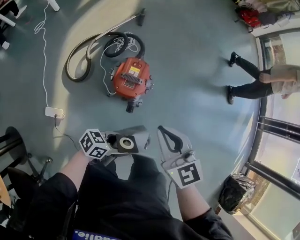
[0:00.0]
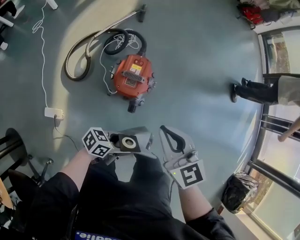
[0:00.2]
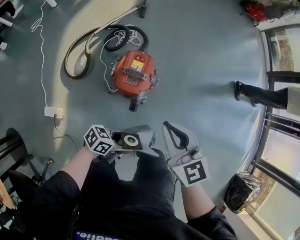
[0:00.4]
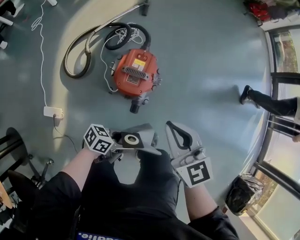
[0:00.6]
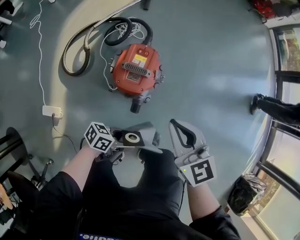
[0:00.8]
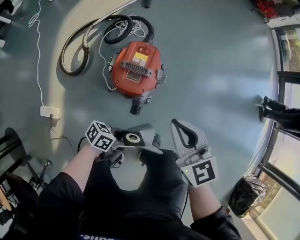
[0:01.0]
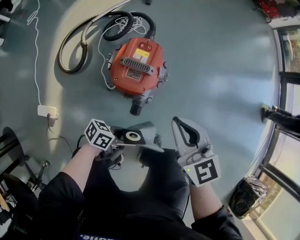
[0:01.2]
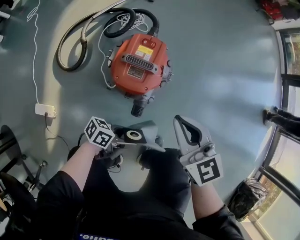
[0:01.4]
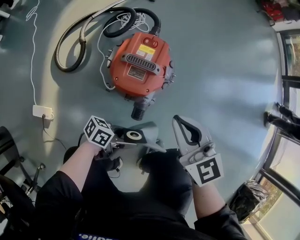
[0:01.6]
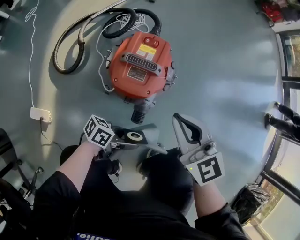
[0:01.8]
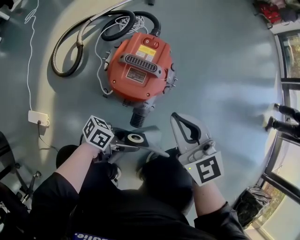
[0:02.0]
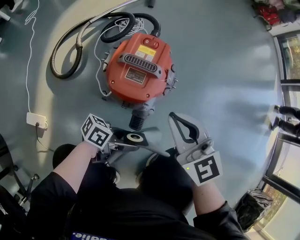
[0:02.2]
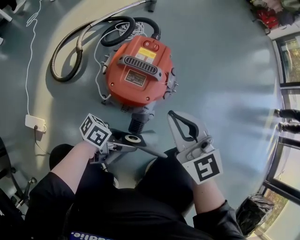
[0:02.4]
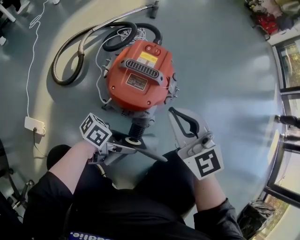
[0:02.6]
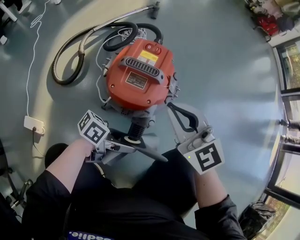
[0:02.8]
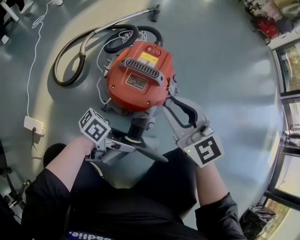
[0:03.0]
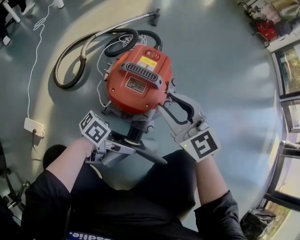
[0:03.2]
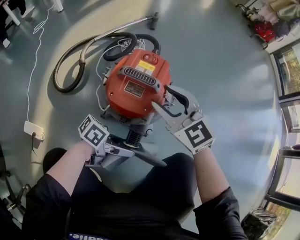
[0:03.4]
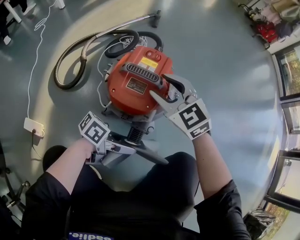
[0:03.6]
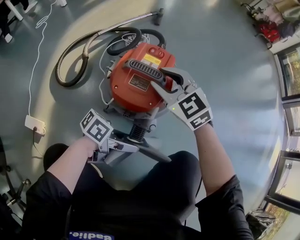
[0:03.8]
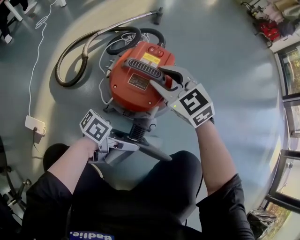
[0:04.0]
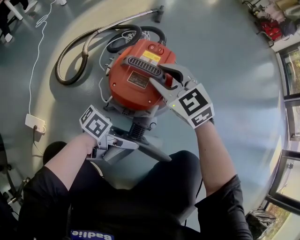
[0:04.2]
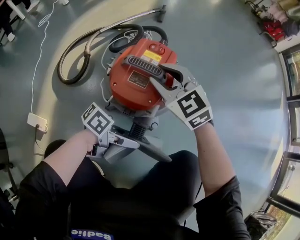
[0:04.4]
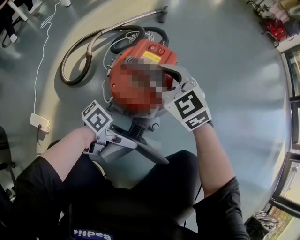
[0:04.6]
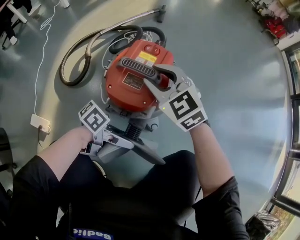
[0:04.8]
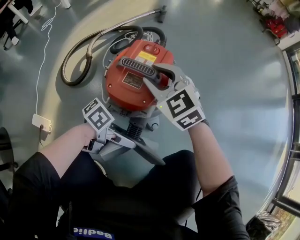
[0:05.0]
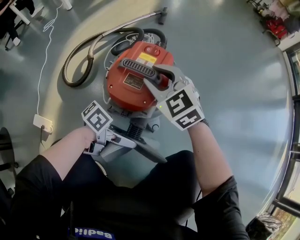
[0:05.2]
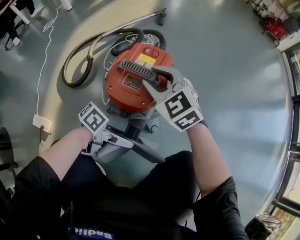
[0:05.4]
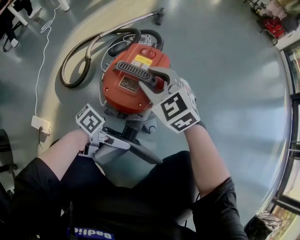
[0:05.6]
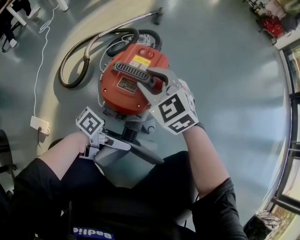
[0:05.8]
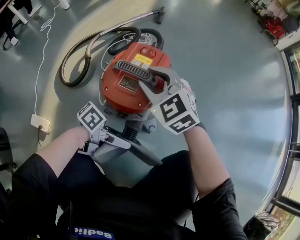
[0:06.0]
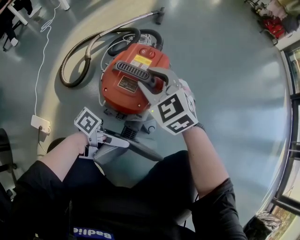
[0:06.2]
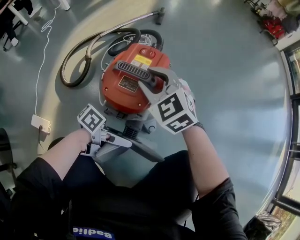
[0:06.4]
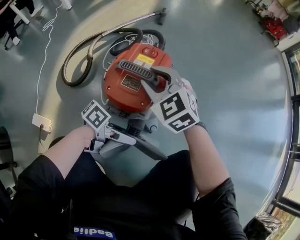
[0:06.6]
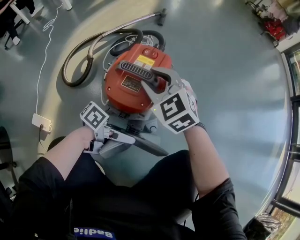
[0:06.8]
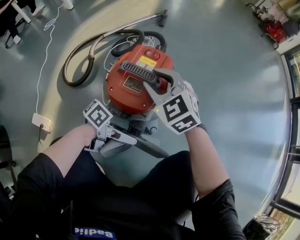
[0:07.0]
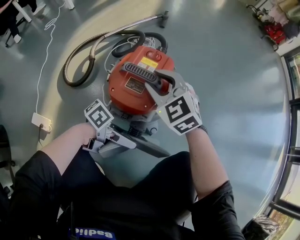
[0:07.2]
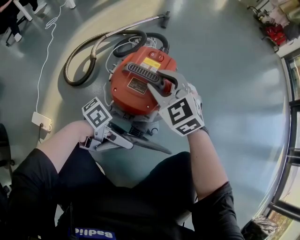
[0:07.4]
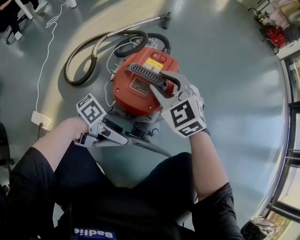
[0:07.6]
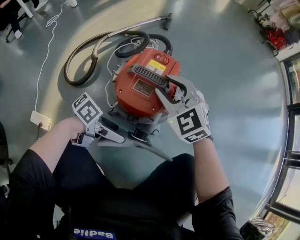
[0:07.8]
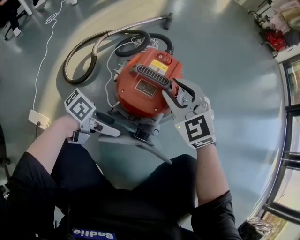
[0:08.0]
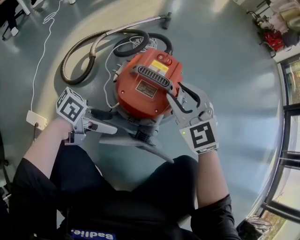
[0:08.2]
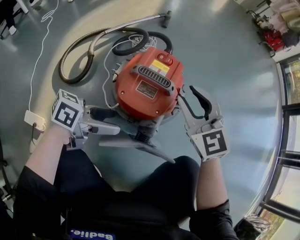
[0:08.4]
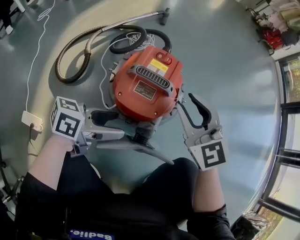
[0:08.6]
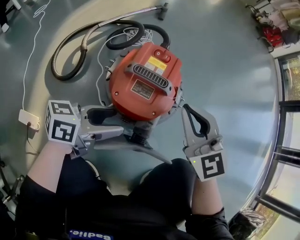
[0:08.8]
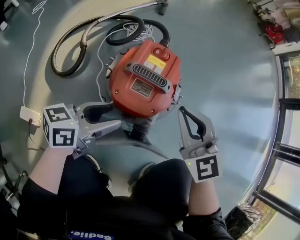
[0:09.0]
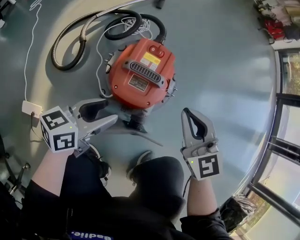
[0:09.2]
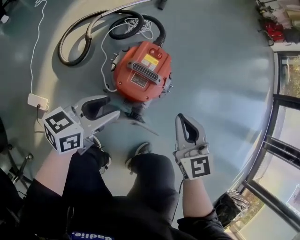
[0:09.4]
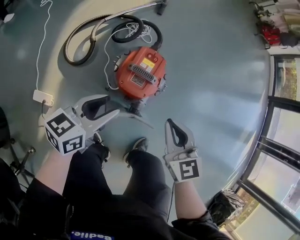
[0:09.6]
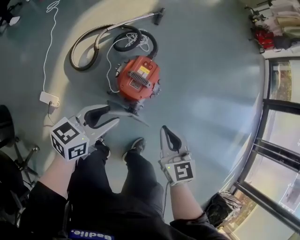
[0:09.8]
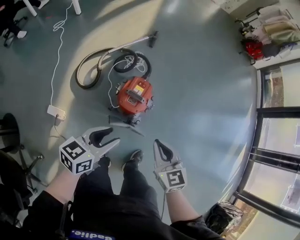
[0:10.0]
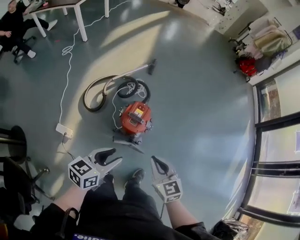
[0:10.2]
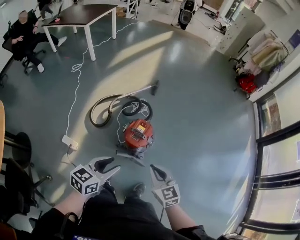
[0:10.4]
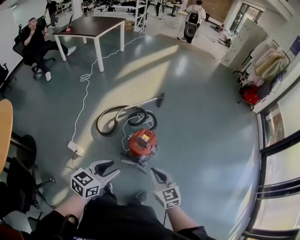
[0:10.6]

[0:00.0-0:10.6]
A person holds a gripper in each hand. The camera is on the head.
0:00.0 to 0:01.6: The two grippers go about 30 cm downward.
0:01.6 to 0:03.0: The left gripper goes approximately 5 cm downward, while the right gripper travels downward by about 10 cm, and turns by about 20 degrees.
0:03.0 to 0:04.6: The right gripper ends up some 10 cm from where it was.
0:04.6 to 0:07.6: The grippers stay close to where they were, moving slightly.
0:07.6 to 0:09.0: The left gripper moves some 15 cm, rotates roughly 40 degrees, and closes, while the right gripper changes place by roughly 10 cm, swivels about 20 degrees, and closes.
0:09.0 to 0:10.6: The right gripper shifts about 40 cm upward and backward, while the left gripper travels upward by roughly 50 cm, and turns by approximately 30 degrees.

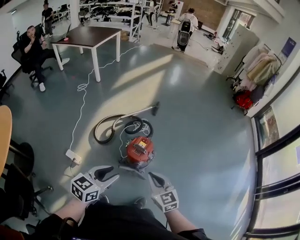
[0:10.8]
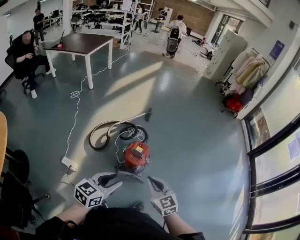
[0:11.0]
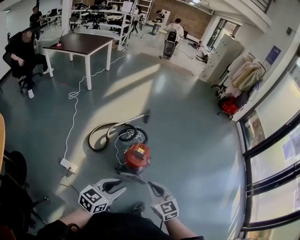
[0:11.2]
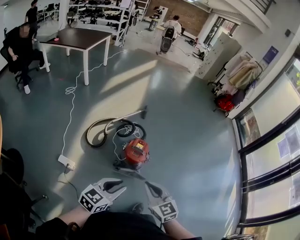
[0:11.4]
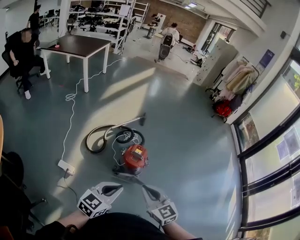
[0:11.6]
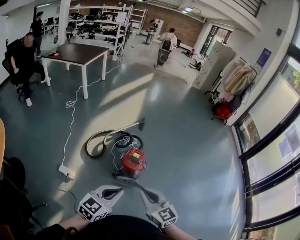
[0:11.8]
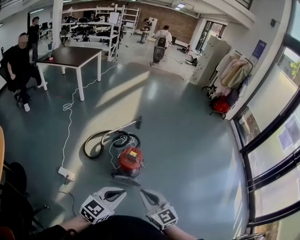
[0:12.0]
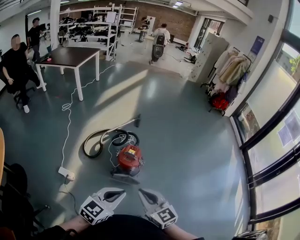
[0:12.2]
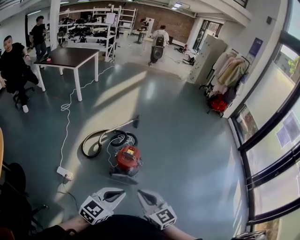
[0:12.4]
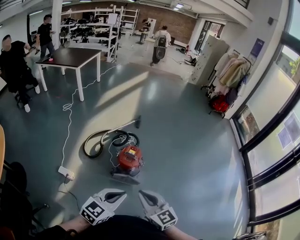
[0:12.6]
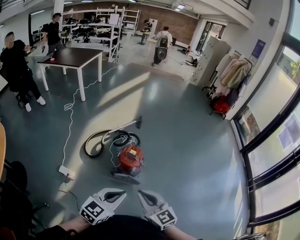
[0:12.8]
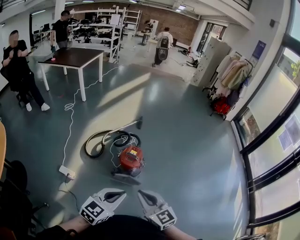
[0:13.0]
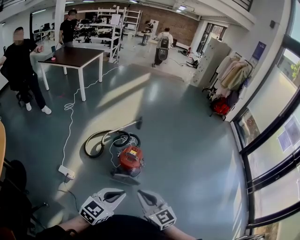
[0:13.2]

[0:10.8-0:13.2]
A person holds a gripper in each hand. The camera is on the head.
0:10.8 to 0:12.0: The left gripper shifts roughly 10 cm backward, and swivels roughly 20 degrees. The right gripper travels backward and upward by roughly 15 cm.
0:12.0 to 0:13.2: There are only small adjustments of the grippers.

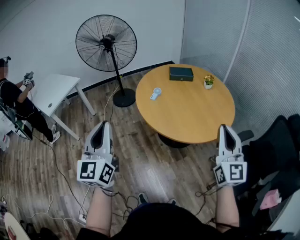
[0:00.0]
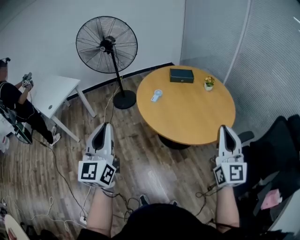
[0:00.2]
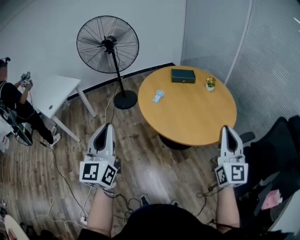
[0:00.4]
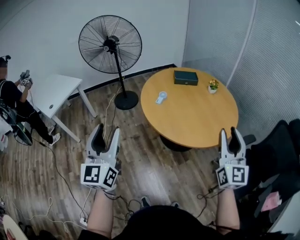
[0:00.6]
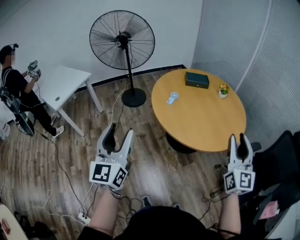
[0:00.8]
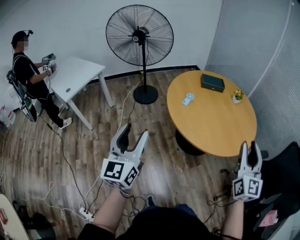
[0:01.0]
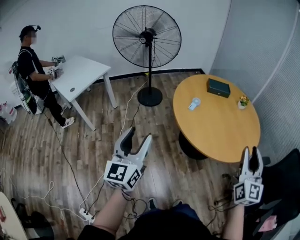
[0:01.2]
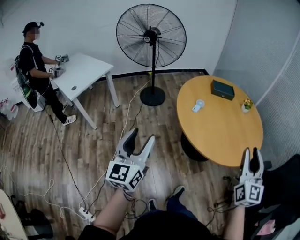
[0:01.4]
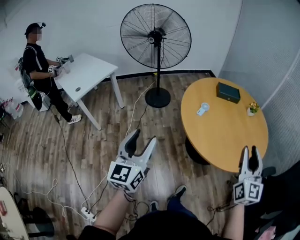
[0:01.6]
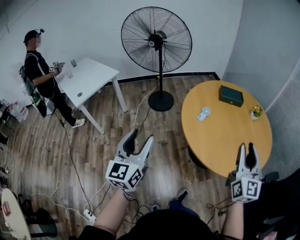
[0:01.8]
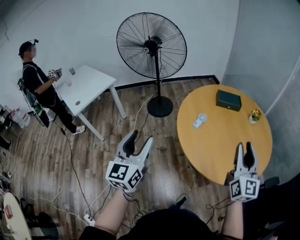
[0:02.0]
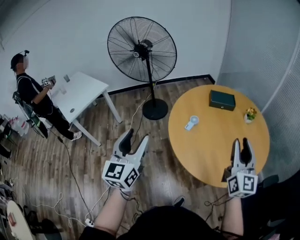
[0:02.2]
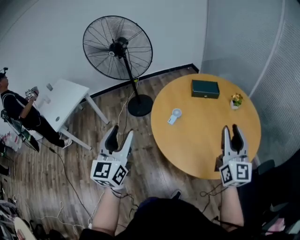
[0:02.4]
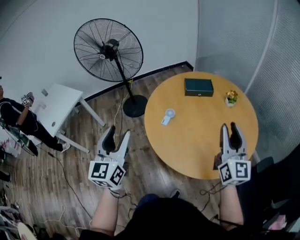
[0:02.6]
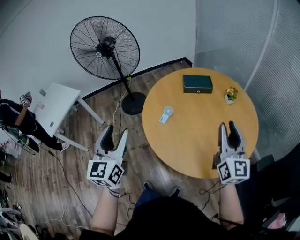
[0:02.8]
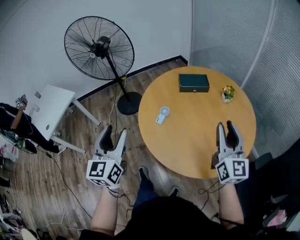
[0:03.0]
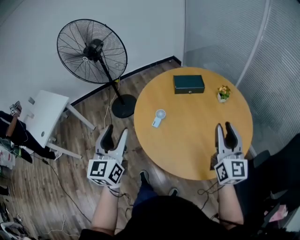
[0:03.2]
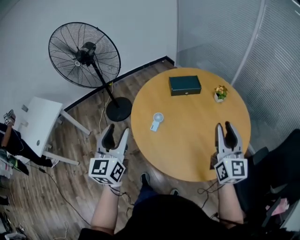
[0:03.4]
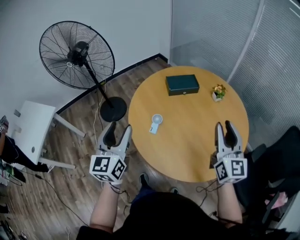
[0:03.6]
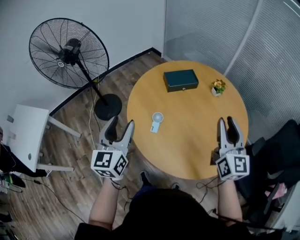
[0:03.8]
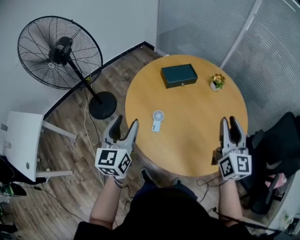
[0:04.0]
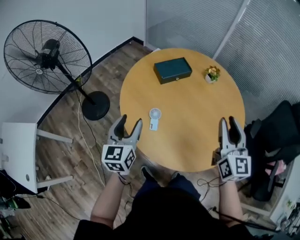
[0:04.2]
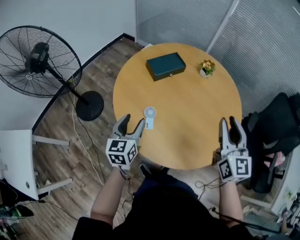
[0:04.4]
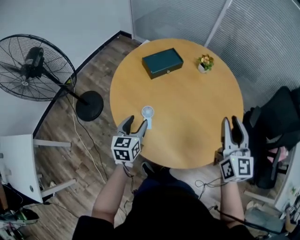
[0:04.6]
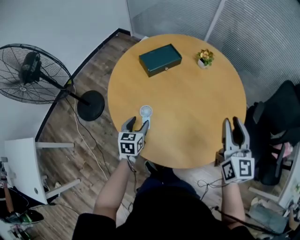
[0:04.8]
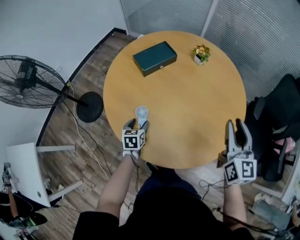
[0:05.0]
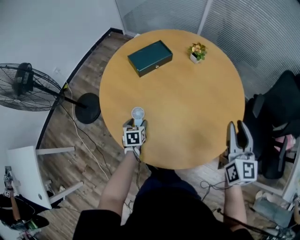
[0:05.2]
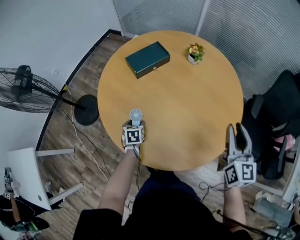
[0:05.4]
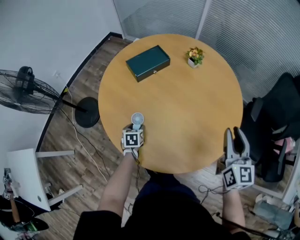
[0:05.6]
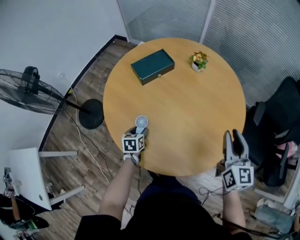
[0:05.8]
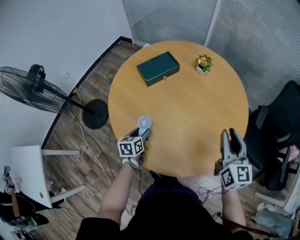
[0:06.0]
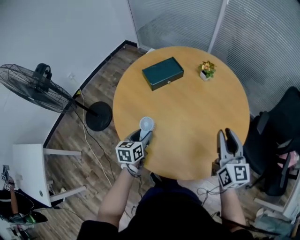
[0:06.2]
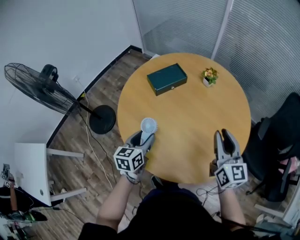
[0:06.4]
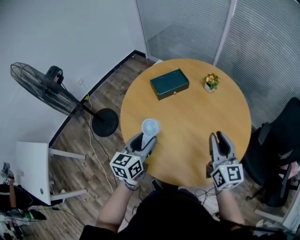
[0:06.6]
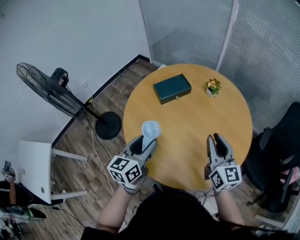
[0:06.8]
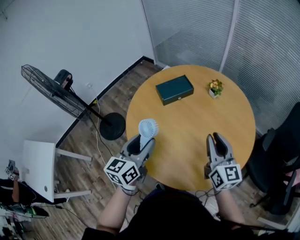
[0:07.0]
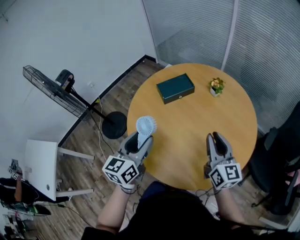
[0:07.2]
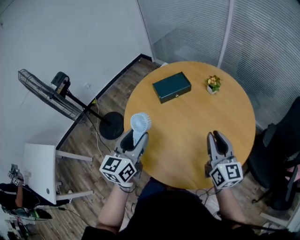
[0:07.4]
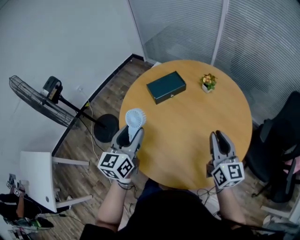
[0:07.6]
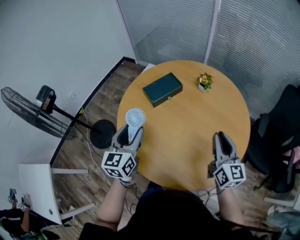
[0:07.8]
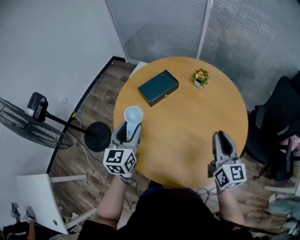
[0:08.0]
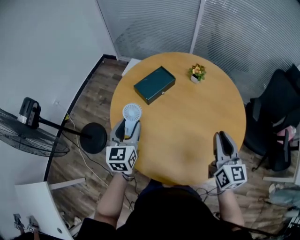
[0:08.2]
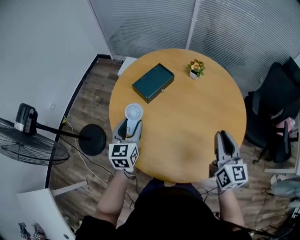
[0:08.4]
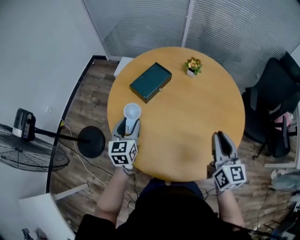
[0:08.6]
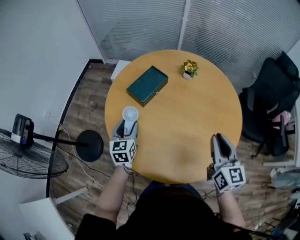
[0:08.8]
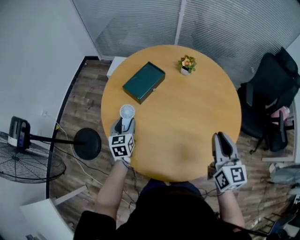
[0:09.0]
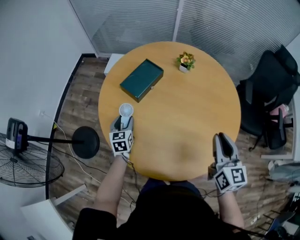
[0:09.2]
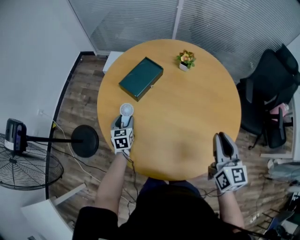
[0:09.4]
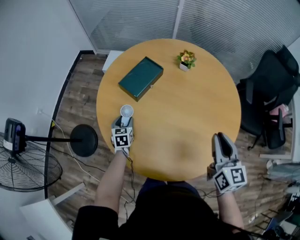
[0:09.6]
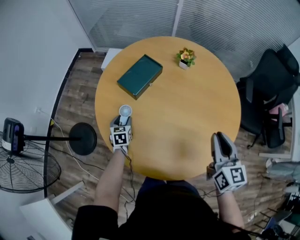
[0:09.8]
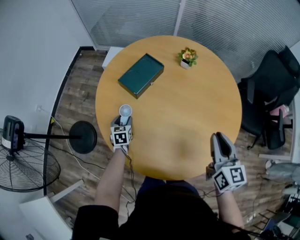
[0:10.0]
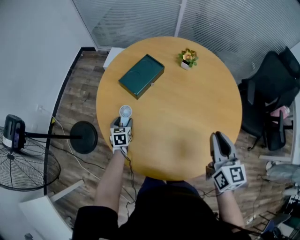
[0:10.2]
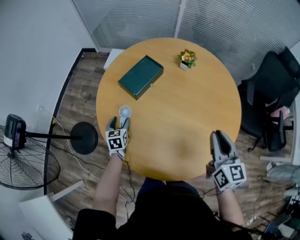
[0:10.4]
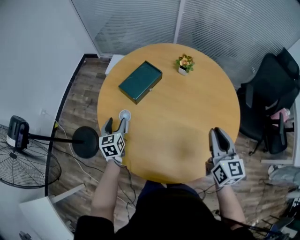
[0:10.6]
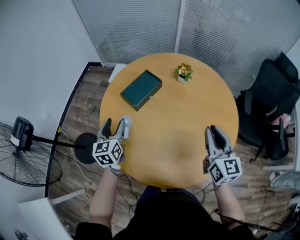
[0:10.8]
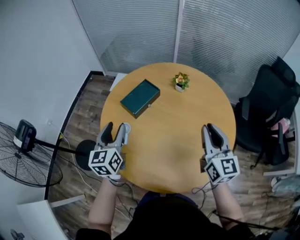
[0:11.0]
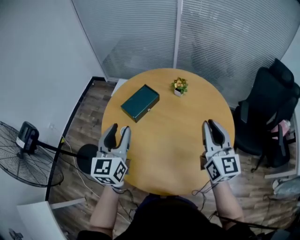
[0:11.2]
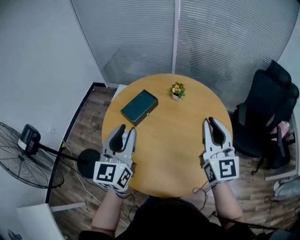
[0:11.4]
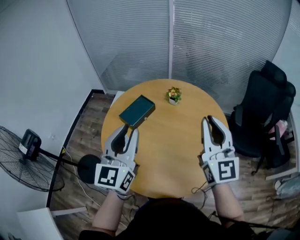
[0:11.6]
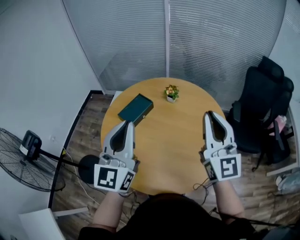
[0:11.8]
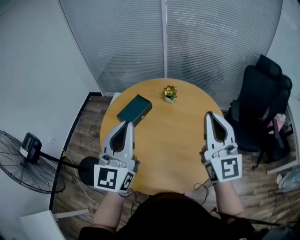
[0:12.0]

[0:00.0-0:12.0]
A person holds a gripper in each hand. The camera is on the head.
0:00.0 to 0:01.6: The left gripper moves to the left, downward and forward, some 25 cm, and opens up; the right gripper goes roughly 20 cm to the left and forward, and opens up.
0:01.6 to 0:03.0: The grippers both shift forward and to the right by about 35 cm.
0:03.0 to 0:04.4: The left gripper moves roughly 35 cm, and changes its angle by some 40 degrees, while the right gripper changes place by about 15 cm, and turns by some 30 degrees.
0:04.4 to 0:06.0: The left gripper goes roughly 20 cm downward and to the right, and turns by roughly 30 degrees; the right gripper heads to the right and downward, covering approximately 15 cm.
0:06.0 to 0:07.6: The left gripper is displaced upward by some 30 cm, and tilts its fingers approximately 30 degrees upward; the right gripper is displaced to the left by some 5 cm.
0:07.6 to 0:09.0: The left gripper moves downward, forward and to the left, roughly 30 cm, and swivels some 20 degrees. Meanwhile the right gripper heads to the left, covering approximately 5 cm, and swivels about 30 degrees.
0:09.0 to 0:10.4: The left gripper moves downward, some 10 cm.
0:10.4 to 0:12.0: The right gripper heads upward, covering about 25 cm, and points its fingers approximately 30 degrees further upward; the left gripper moves upward, about 50 cm, tips its fingers upward by some 50 degrees, and closes.
